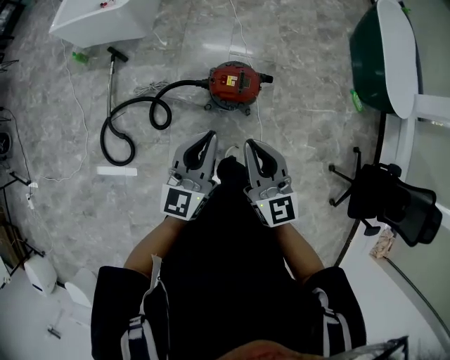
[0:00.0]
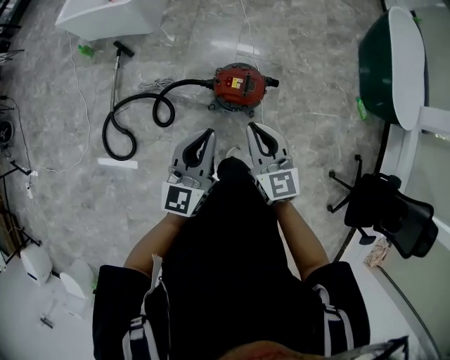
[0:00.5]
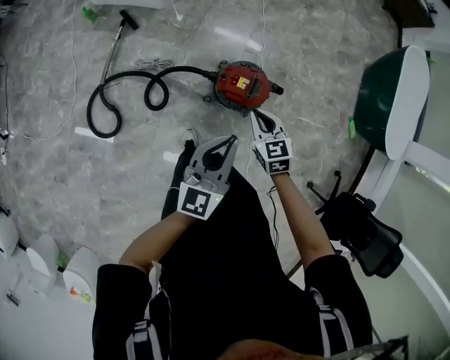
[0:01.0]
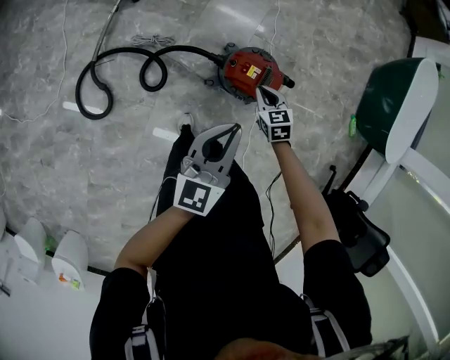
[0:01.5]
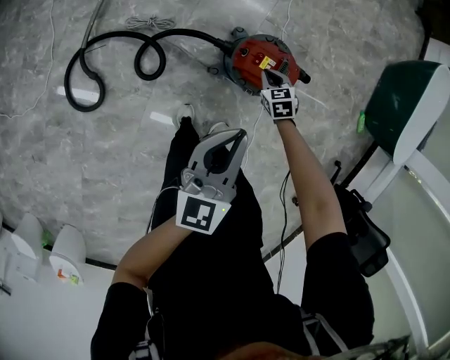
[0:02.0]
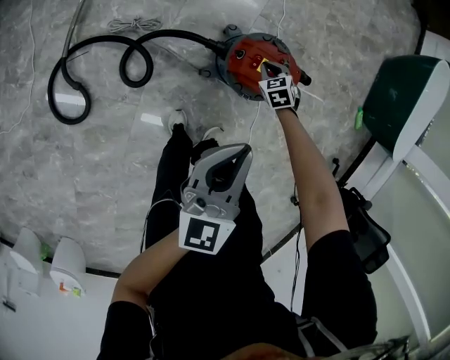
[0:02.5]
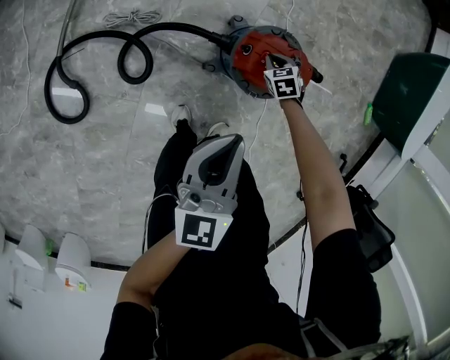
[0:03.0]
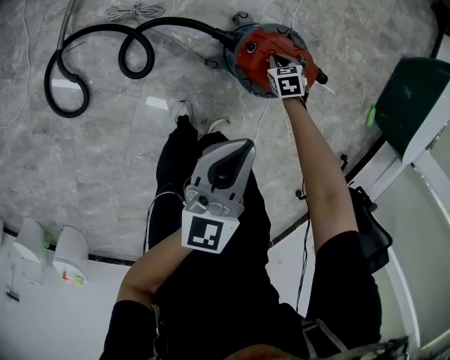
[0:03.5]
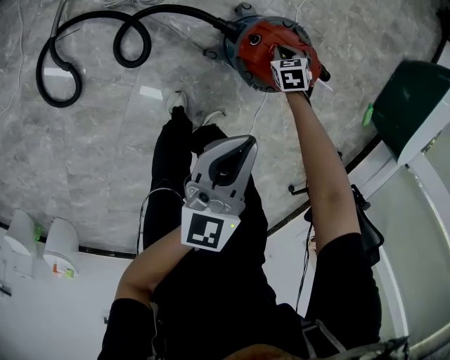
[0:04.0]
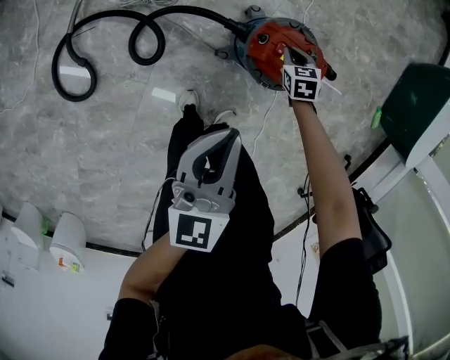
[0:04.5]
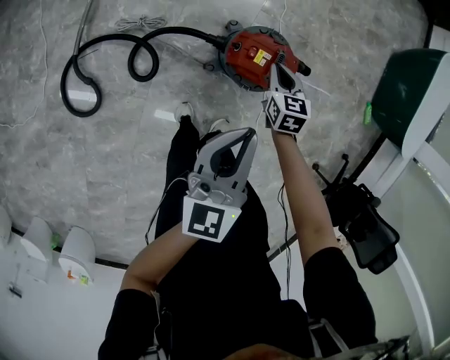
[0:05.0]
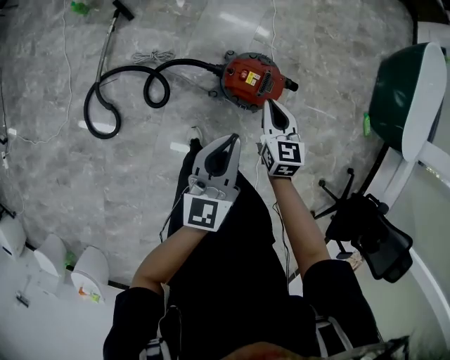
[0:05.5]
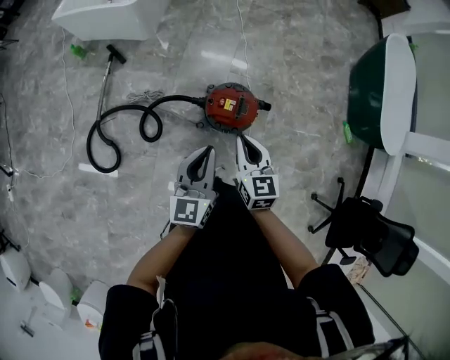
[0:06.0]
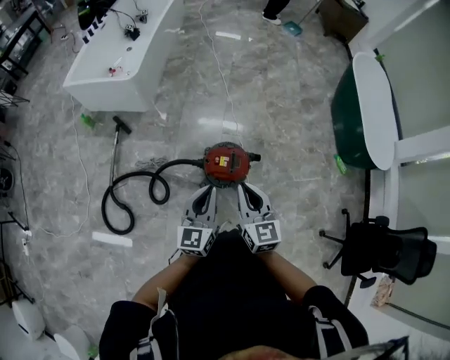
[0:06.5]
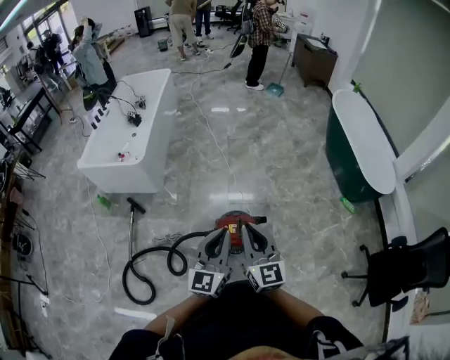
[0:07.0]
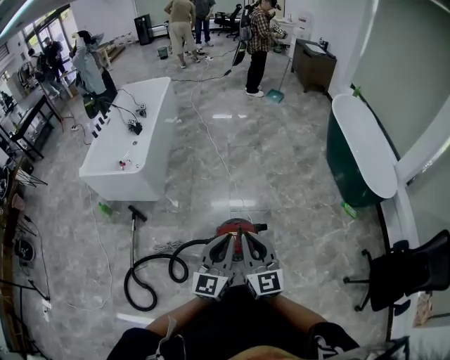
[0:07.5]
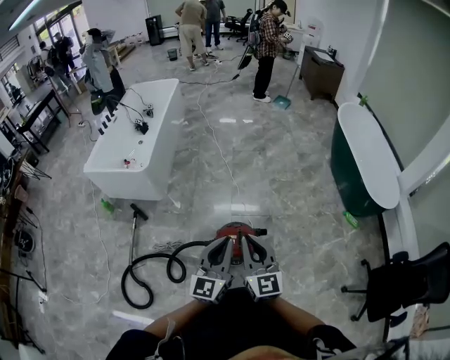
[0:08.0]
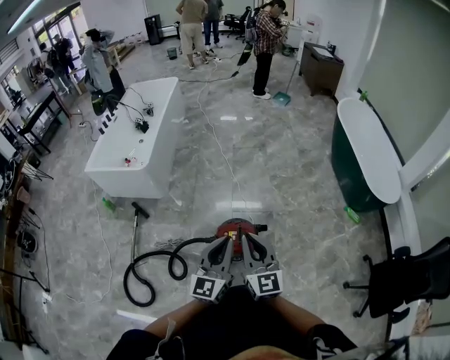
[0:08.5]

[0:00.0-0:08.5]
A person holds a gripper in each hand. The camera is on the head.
0:00.0 to 0:02.0: The right gripper goes roughly 60 cm downward and forward, and points its fingers approximately 50 degrees further downward. The left gripper travels downward by approximately 20 cm.
0:02.0 to 0:04.0: The two grippers go roughly 15 cm downward.
0:04.0 to 0:06.5: The right gripper moves upward, approximately 60 cm, and tips its fingers upward by about 60 degrees, while the left gripper moves upward, about 30 cm.
0:06.5 to 0:08.5: Both grippers travel together upward and to the right, approximately 10 cm.

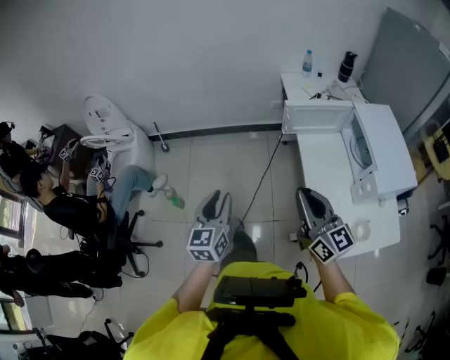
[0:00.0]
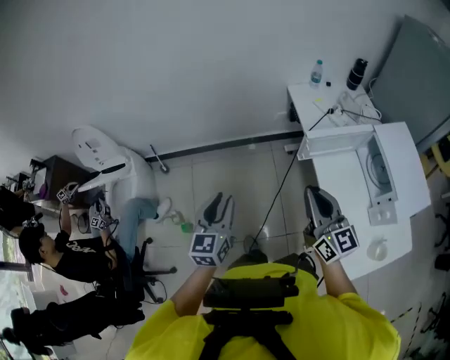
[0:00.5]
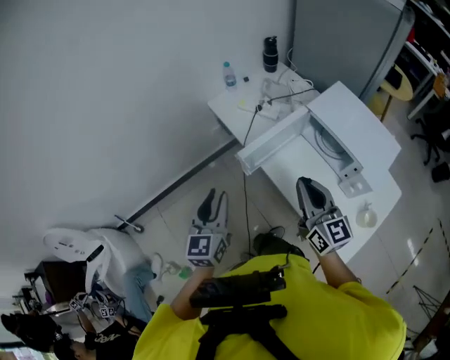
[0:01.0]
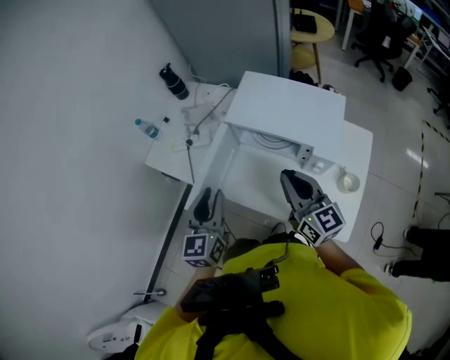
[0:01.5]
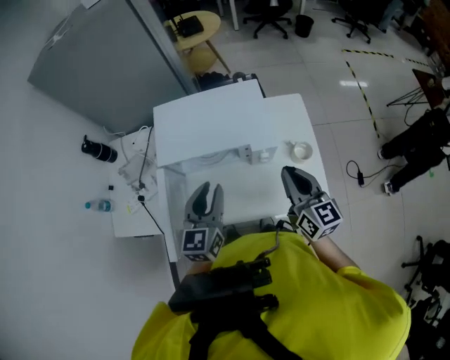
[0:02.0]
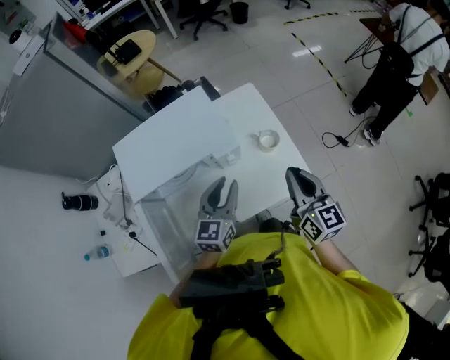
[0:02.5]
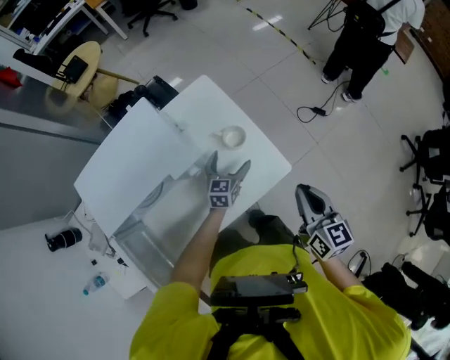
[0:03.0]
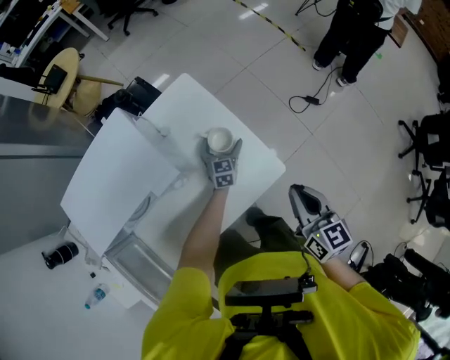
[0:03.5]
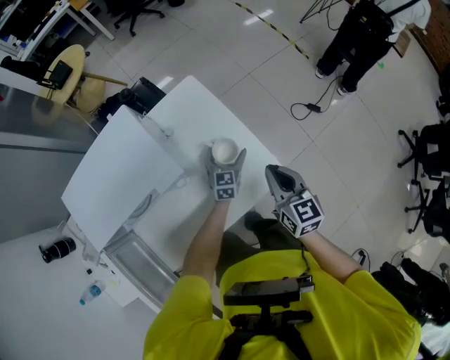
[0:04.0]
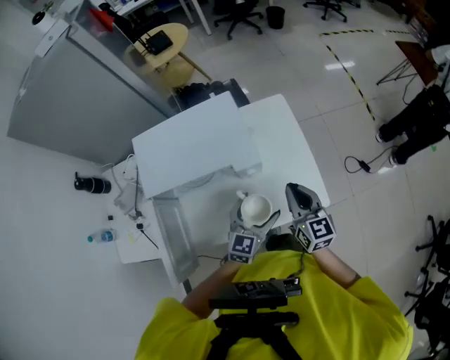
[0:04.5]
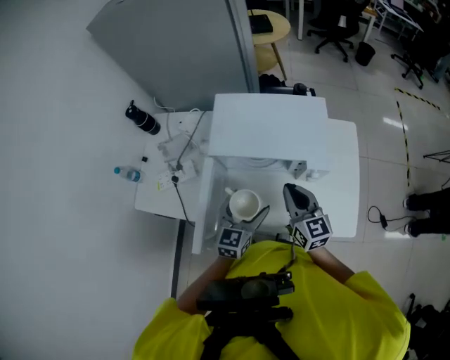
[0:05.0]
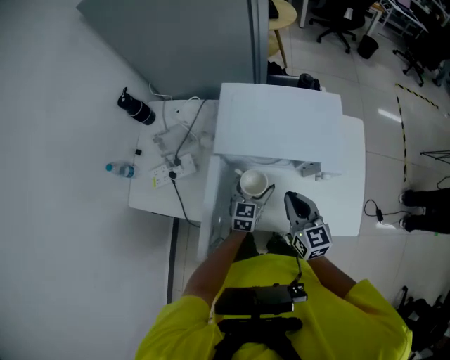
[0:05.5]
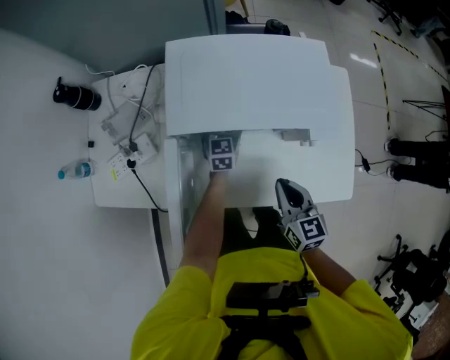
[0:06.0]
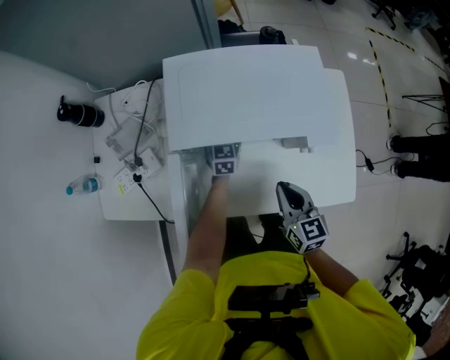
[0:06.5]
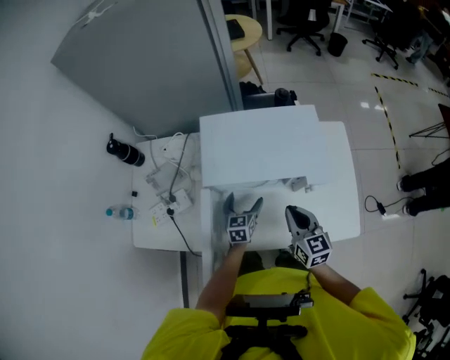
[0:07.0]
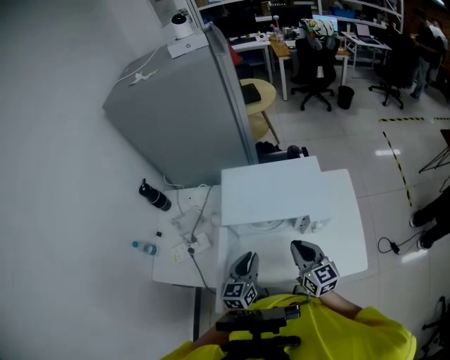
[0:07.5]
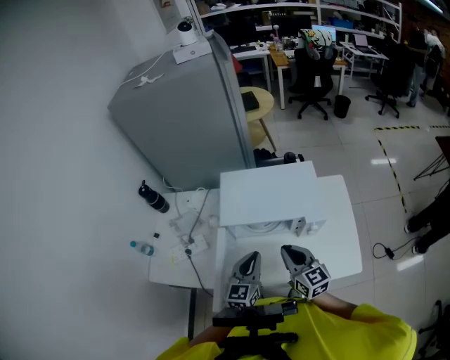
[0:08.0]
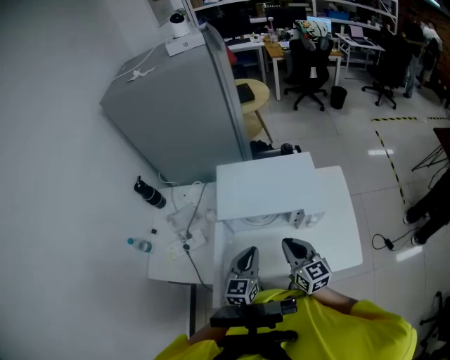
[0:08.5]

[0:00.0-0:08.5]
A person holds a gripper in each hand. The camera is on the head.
0:00.0 to 0:02.0: The right gripper changes place by some 30 cm, and rotates about 100 degrees. The left gripper ends up approximately 50 cm from where it was, and changes its angle by about 90 degrees.
0:02.0 to 0:04.0: The left gripper changes place by some 50 cm, rotates some 30 degrees, and opens. Meanwhile the right gripper moves approximately 25 cm, and rotates about 30 degrees.
0:04.0 to 0:06.5: The right gripper moves roughly 10 cm upward and comes back, and changes its angle by about 30 degrees. The left gripper goes upward and returns, approximately 20 cm each way, and changes its angle by approximately 40 degrees.
0:06.5 to 0:08.5: The right gripper travels upward by about 15 cm, while the left gripper is displaced upward and backward by approximately 35 cm, and closes up.

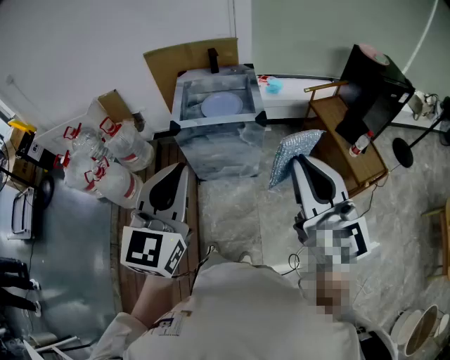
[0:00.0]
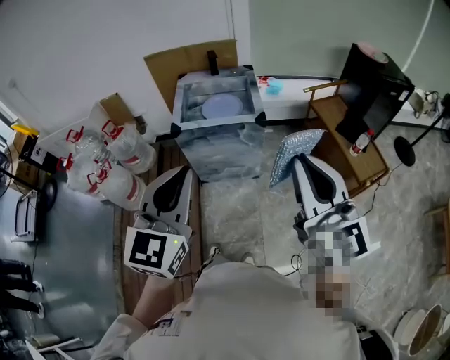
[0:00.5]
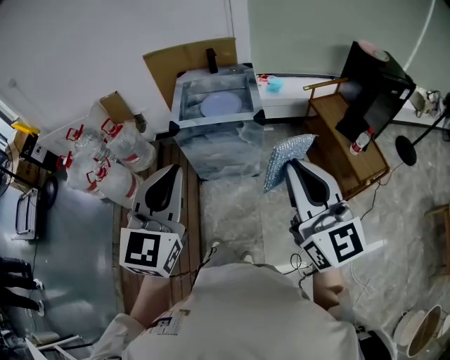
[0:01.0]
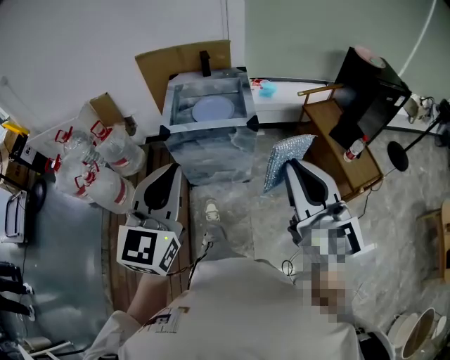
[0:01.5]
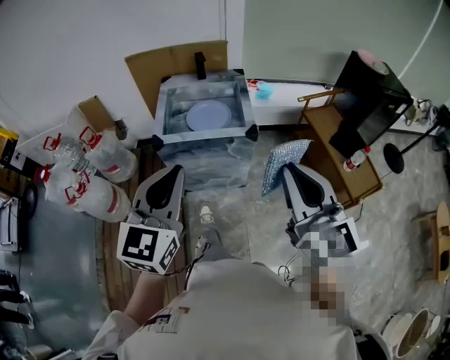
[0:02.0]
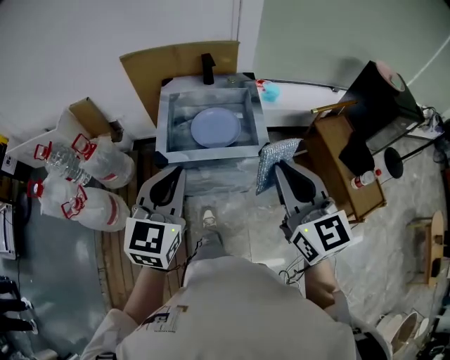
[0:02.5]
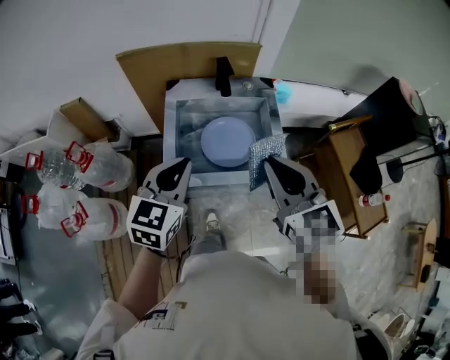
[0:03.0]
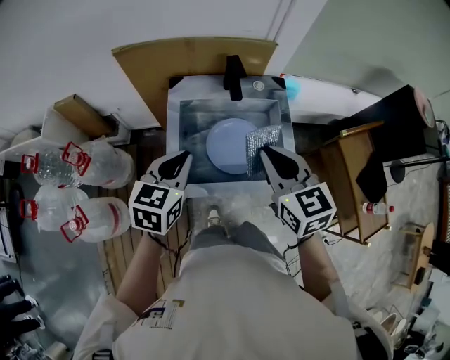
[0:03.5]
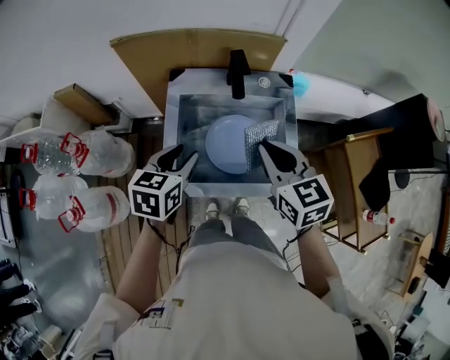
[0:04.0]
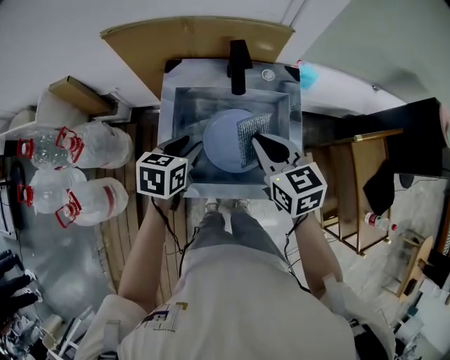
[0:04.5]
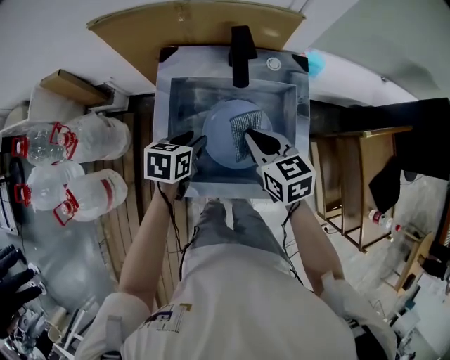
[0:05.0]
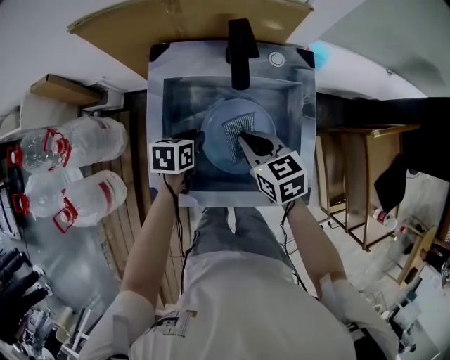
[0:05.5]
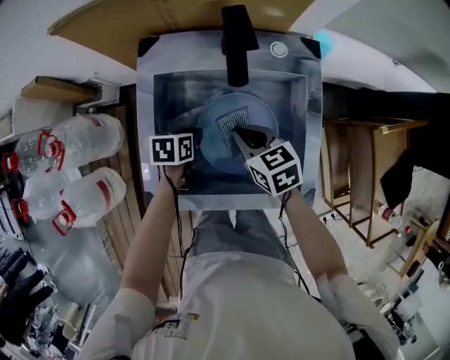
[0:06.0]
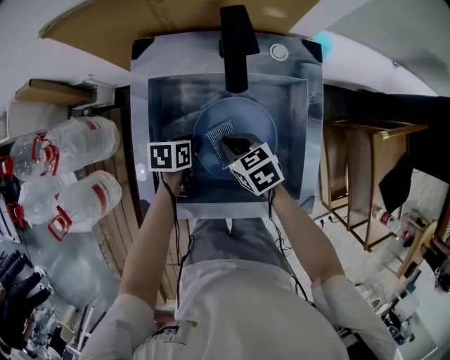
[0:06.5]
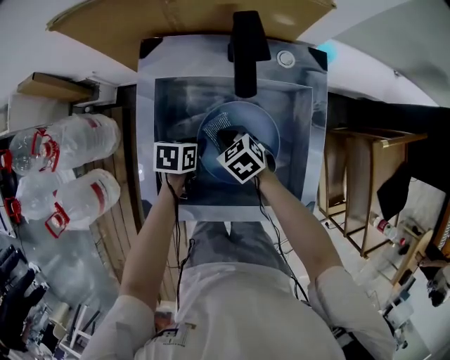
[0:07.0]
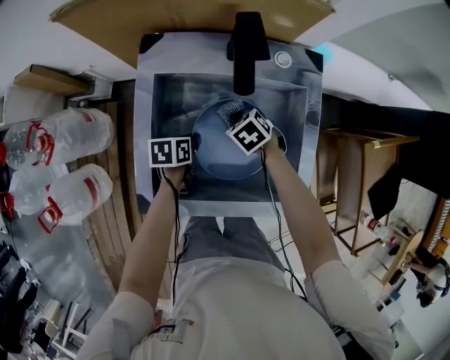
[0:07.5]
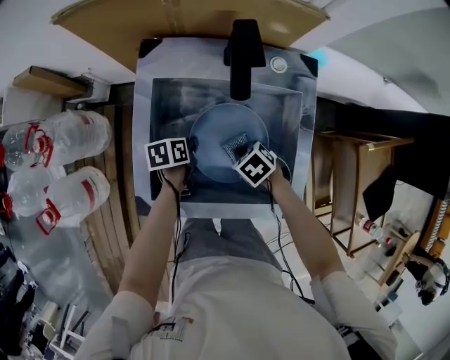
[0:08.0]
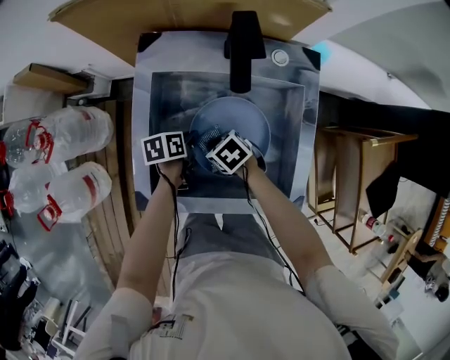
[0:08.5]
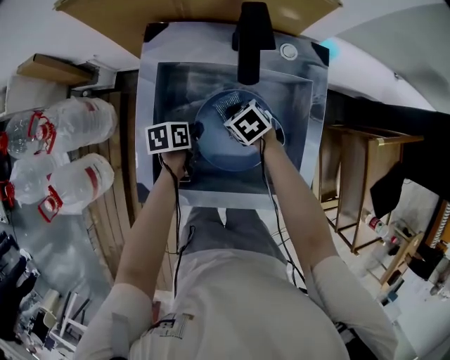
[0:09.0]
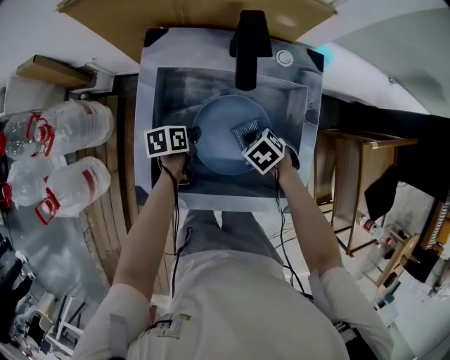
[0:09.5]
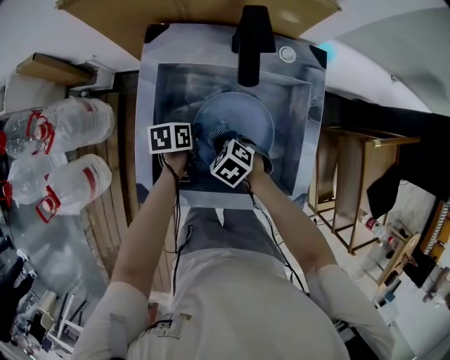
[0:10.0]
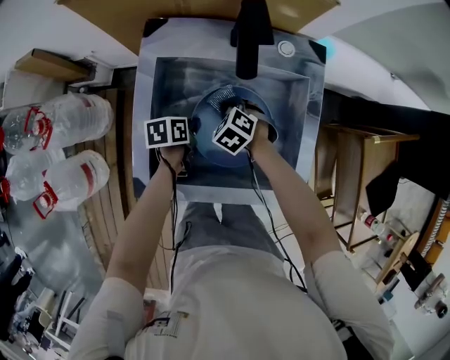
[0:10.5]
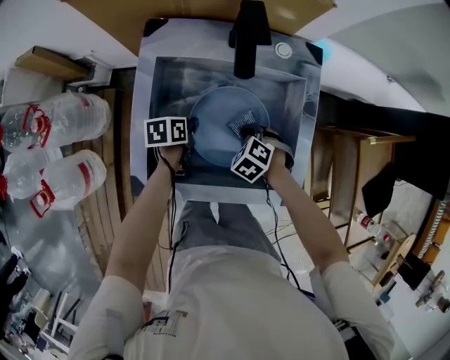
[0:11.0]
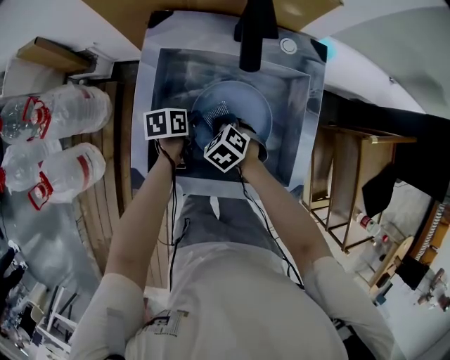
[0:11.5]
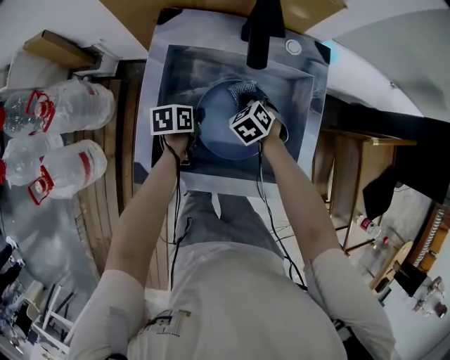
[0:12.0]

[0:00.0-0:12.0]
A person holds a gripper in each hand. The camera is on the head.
0:00.0 to 0:02.0: The grippers both shift forward and downward by some 15 cm.
0:02.0 to 0:04.0: The pair of grippers is taken forward, about 50 cm. The left gripper shifts roughly 20 cm downward, tilts its fingers some 30 degrees downward, and opens its fingers. Meanwhile the right gripper changes its angle by some 30 degrees.
0:04.0 to 0:06.0: The grippers both shift downward by roughly 30 cm. The left gripper changes its angle by about 30 degrees. Meanwhile the right gripper swivels approximately 20 degrees.
0:06.0 to 0:08.0: The right gripper is displaced downward by some 10 cm, and tips its fingers downward by about 30 degrees.
0:08.0 to 0:10.0: The right gripper ends up some 10 cm from where it was.
0:10.0 to 0:12.0: The right gripper ends up approximately 10 cm from where it was, and changes its angle by approximately 20 degrees.
